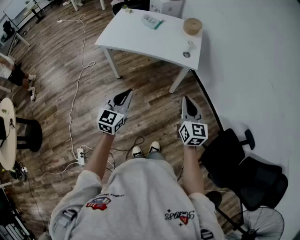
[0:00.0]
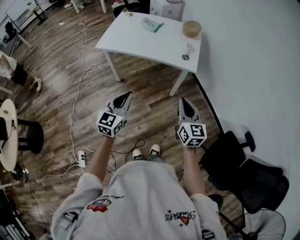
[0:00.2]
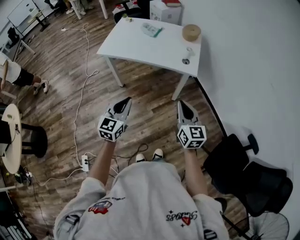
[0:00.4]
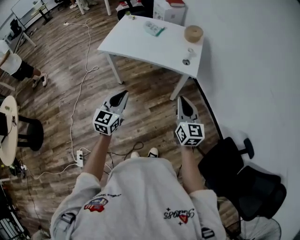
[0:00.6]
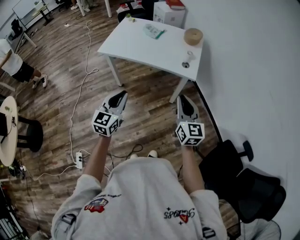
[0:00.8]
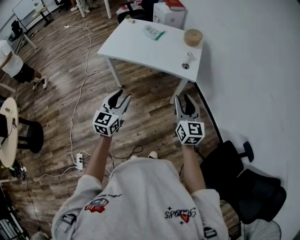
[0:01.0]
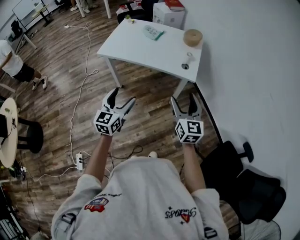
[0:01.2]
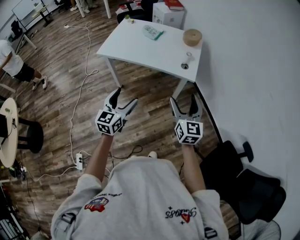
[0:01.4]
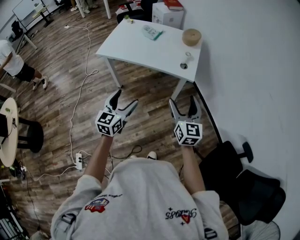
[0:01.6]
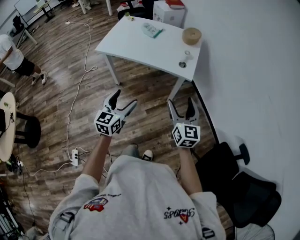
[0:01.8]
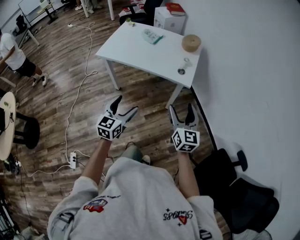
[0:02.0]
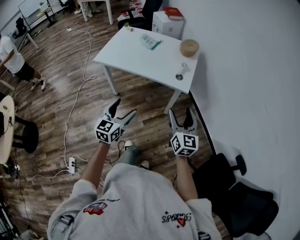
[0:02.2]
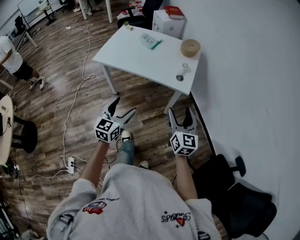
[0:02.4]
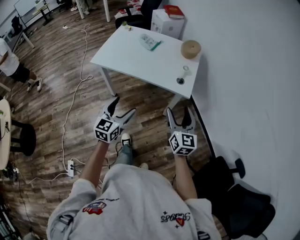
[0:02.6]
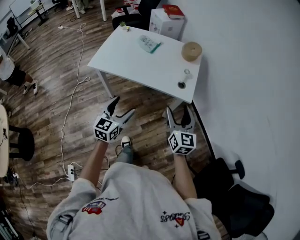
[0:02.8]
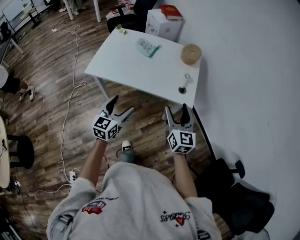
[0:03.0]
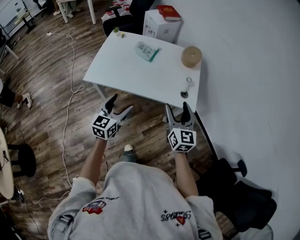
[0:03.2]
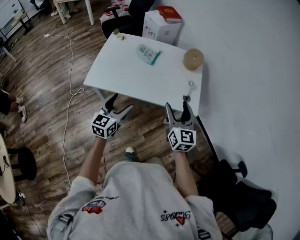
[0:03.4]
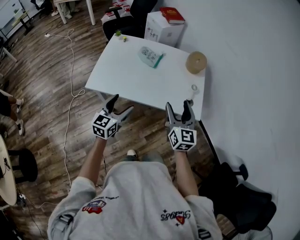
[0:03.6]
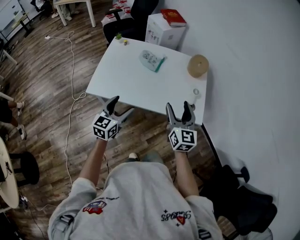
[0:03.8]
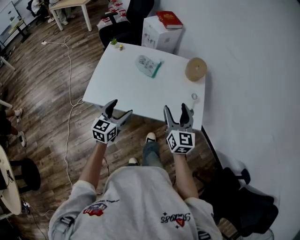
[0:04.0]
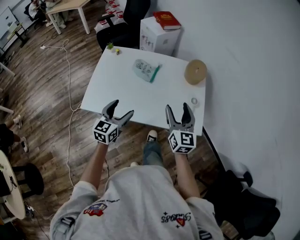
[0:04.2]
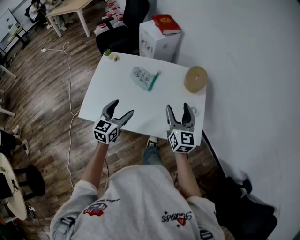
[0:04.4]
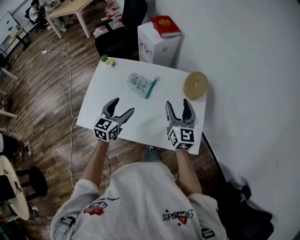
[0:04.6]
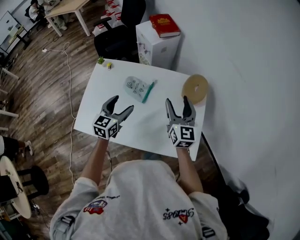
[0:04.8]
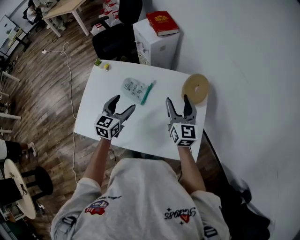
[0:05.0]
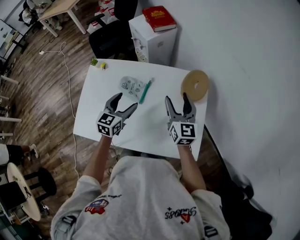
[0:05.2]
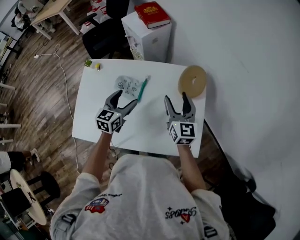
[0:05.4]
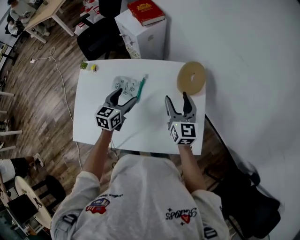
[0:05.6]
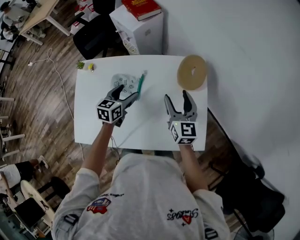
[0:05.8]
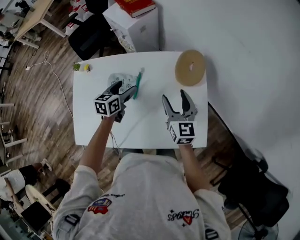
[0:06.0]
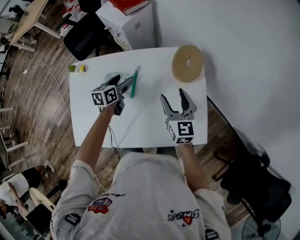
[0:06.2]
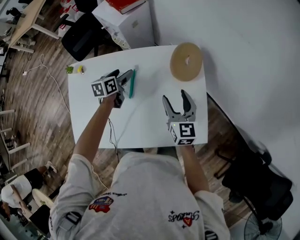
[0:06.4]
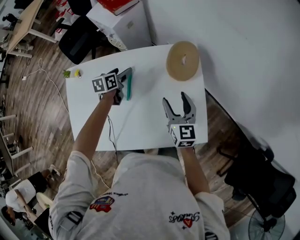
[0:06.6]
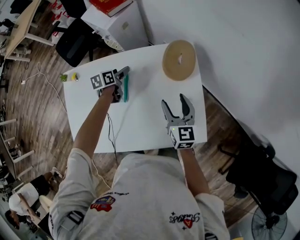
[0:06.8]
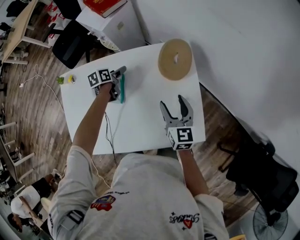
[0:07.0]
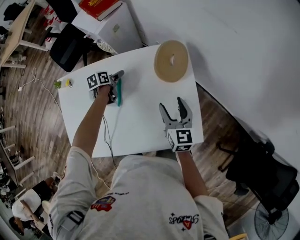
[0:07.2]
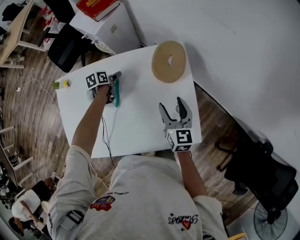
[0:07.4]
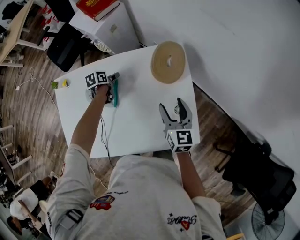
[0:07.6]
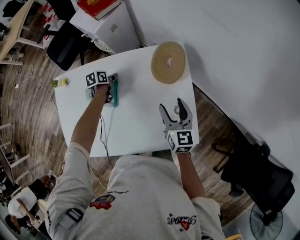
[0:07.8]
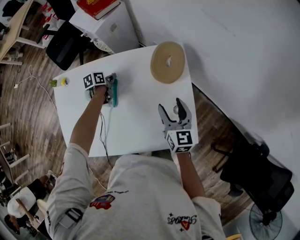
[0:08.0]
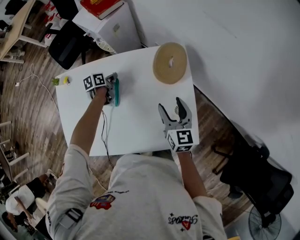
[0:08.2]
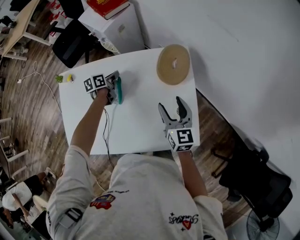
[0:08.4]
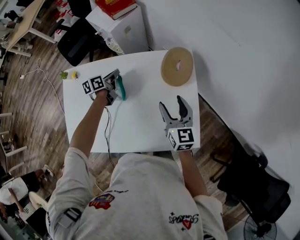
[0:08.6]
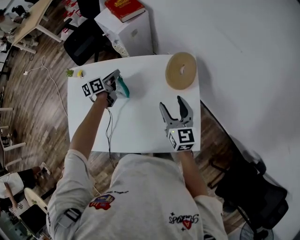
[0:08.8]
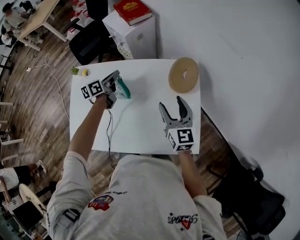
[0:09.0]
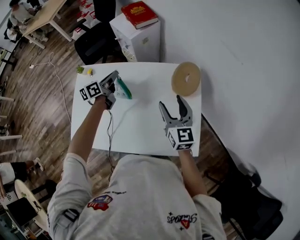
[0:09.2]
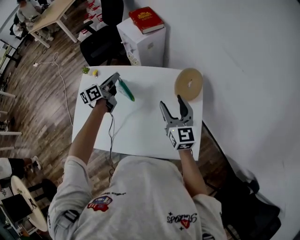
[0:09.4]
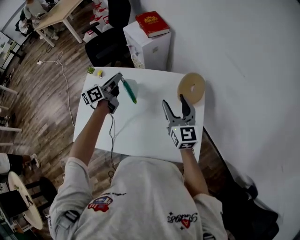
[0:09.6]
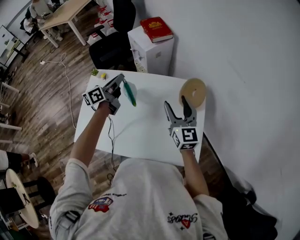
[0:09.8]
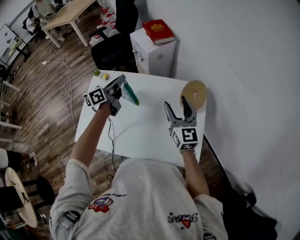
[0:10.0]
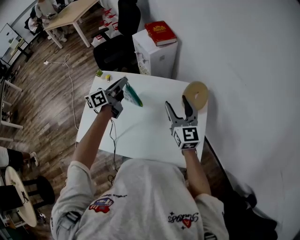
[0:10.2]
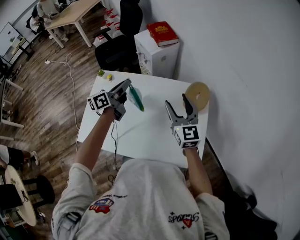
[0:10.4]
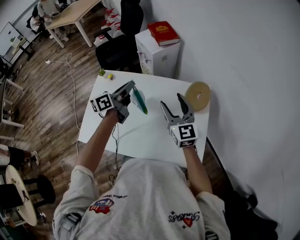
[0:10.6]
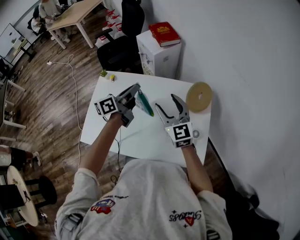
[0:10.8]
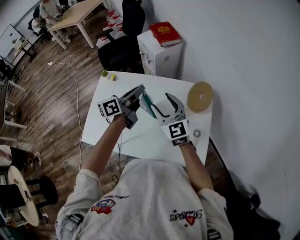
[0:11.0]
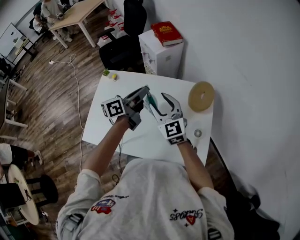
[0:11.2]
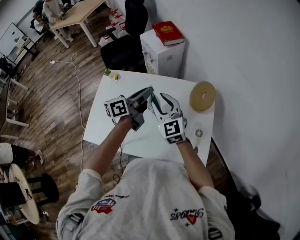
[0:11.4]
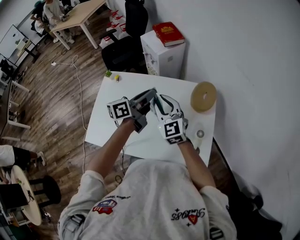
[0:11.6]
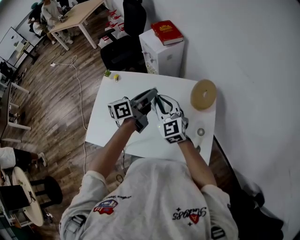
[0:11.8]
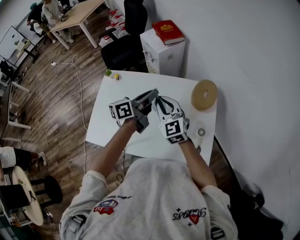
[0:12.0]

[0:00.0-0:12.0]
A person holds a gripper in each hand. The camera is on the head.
0:00.0 to 0:01.6: The left gripper opens up, while the right gripper moves roughly 5 cm, and opens its fingers.
0:01.6 to 0:03.0: Both grippers move forward and to the left, some 25 cm.
0:03.0 to 0:04.4: Both grippers travel together forward, roughly 35 cm.
0:04.4 to 0:06.0: The left gripper shifts some 30 cm forward, and rotates approximately 30 degrees. Meanwhile the right gripper shifts roughly 25 cm forward and downward.
0:06.0 to 0:07.6: The left gripper heads downward and forward, covering roughly 20 cm, turns by some 30 degrees, and closes its fingers; the right gripper goes roughly 10 cm to the right and downward.
0:07.6 to 0:09.0: The left gripper travels upward by roughly 20 cm, angles its fingers upward, by roughly 30 degrees, and closes. The right gripper shifts approximately 10 cm upward and to the left.
0:09.0 to 0:10.4: The left gripper moves upward and backward, about 20 cm, and swivels approximately 20 degrees. Meanwhile the right gripper moves upward and to the left, approximately 15 cm.
0:10.4 to 0:12.0: The left gripper is displaced to the right and backward by about 10 cm, while the right gripper is displaced to the left by roughly 10 cm, and closes its fingers.

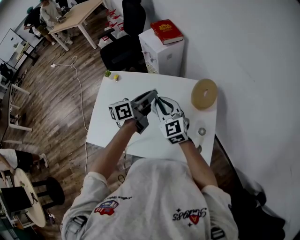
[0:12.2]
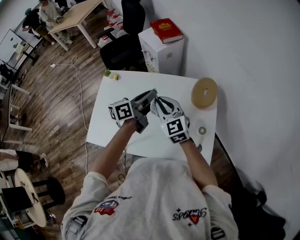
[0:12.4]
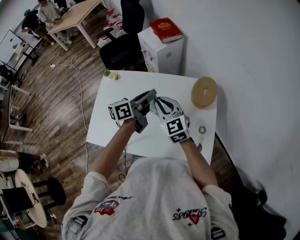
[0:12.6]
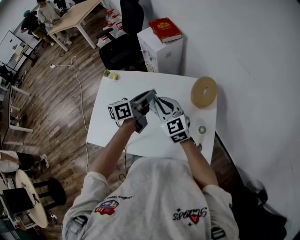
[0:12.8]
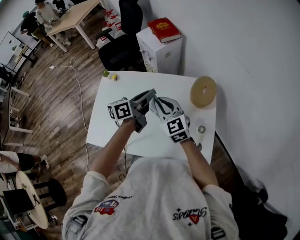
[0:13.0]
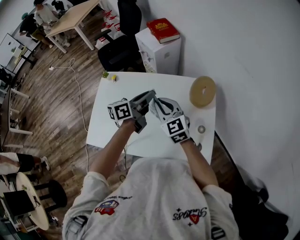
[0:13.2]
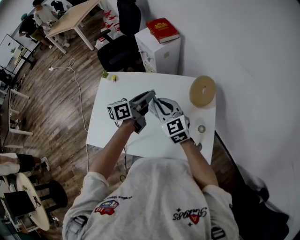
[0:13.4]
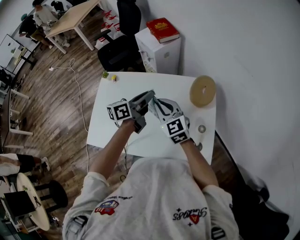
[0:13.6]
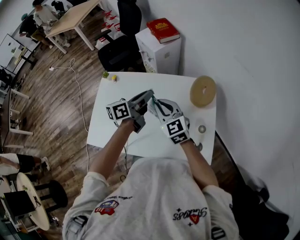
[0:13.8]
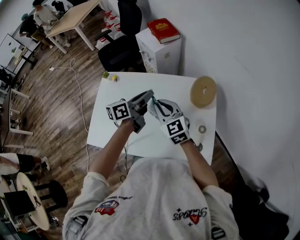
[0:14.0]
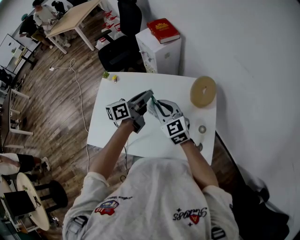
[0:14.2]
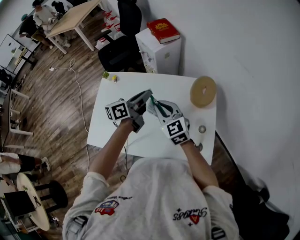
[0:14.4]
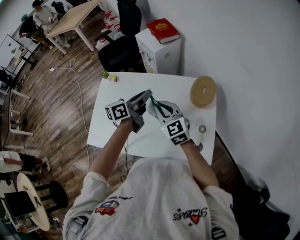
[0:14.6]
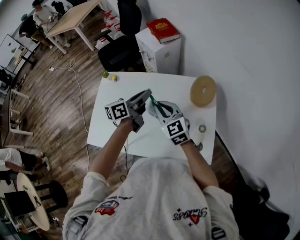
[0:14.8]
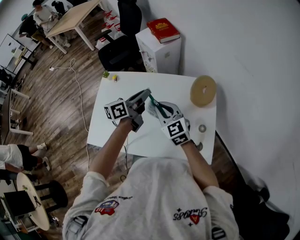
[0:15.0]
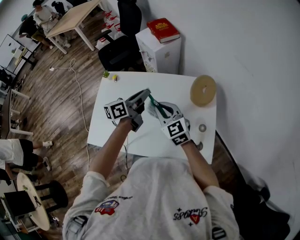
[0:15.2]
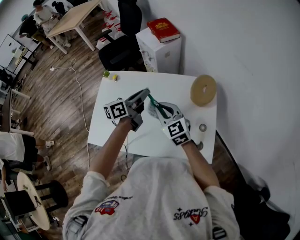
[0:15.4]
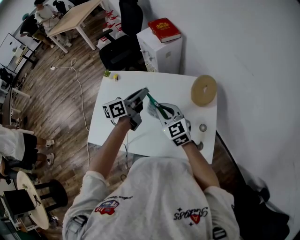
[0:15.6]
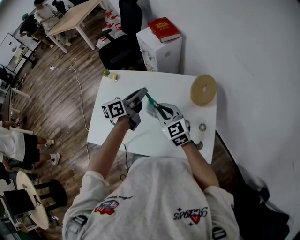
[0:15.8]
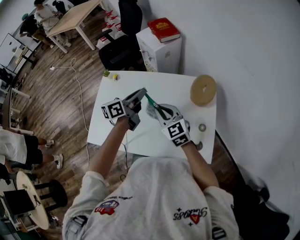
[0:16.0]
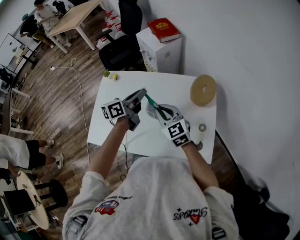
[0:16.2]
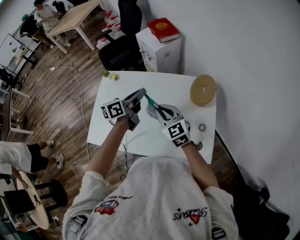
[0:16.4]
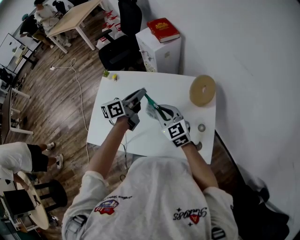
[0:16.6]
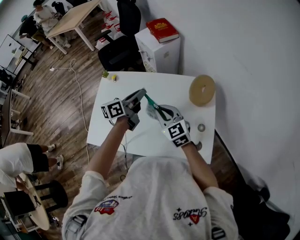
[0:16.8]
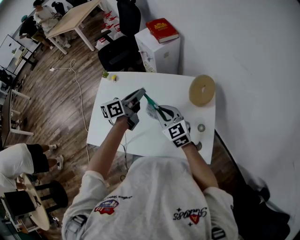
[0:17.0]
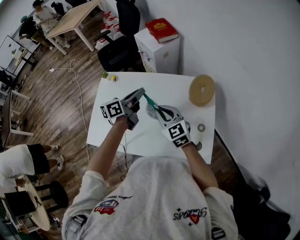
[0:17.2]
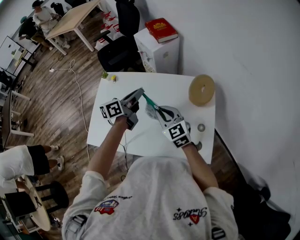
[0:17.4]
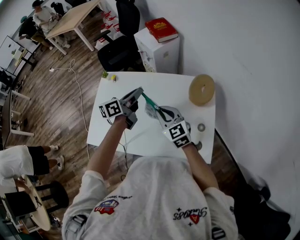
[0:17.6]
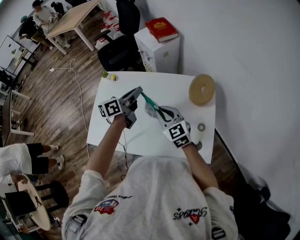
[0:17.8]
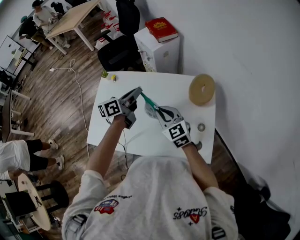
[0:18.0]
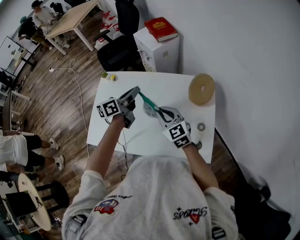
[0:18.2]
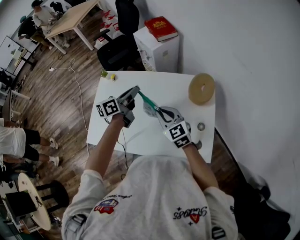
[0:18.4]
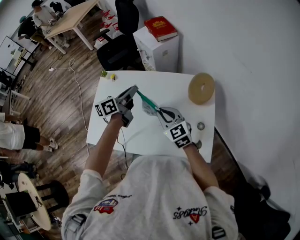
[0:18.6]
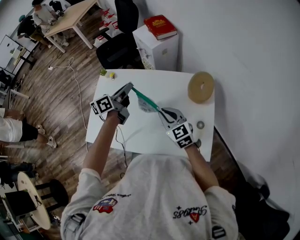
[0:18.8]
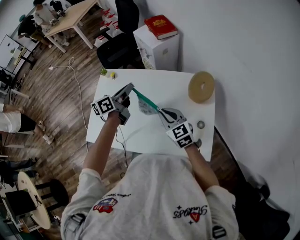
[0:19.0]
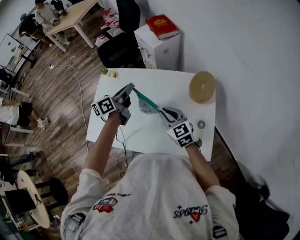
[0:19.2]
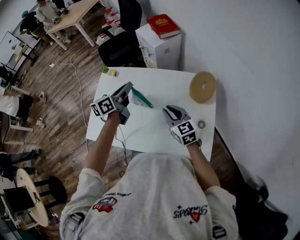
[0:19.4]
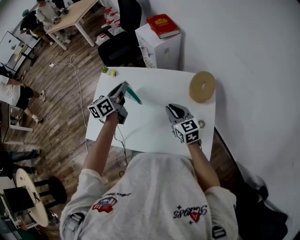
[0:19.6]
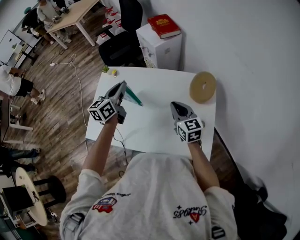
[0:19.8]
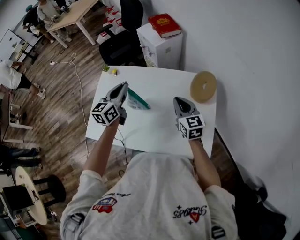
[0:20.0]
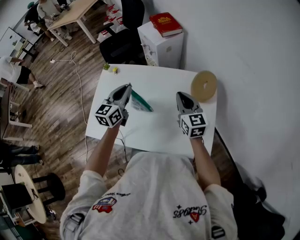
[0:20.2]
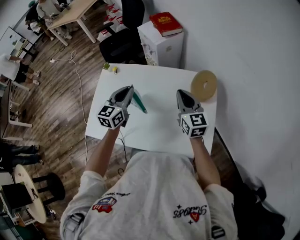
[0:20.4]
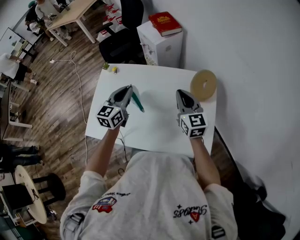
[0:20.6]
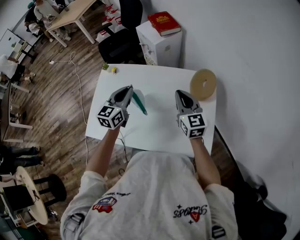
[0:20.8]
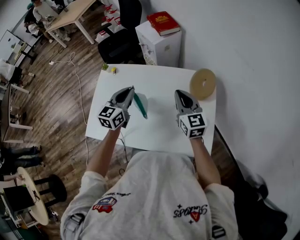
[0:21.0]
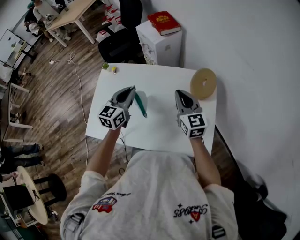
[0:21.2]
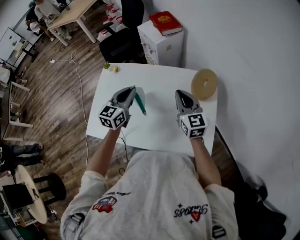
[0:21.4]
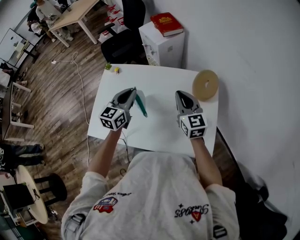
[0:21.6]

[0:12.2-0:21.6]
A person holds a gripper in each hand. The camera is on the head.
0:12.2 to 0:17.0: The grippers make only small movements.
0:17.0 to 0:18.4: There are only small adjustments of the grippers.
0:18.4 to 0:20.0: The left gripper moves to the left, about 5 cm, and swivels about 30 degrees. The right gripper heads to the right, covering approximately 5 cm.
0:20.0 to 0:21.6: The grippers make only small movements.

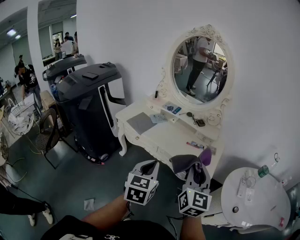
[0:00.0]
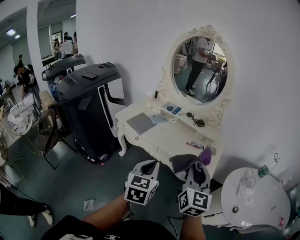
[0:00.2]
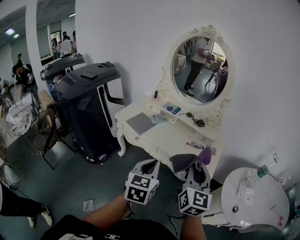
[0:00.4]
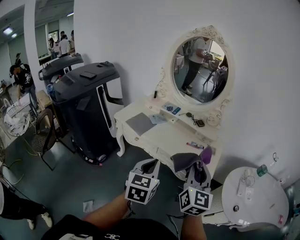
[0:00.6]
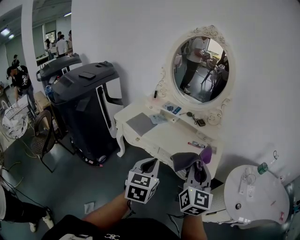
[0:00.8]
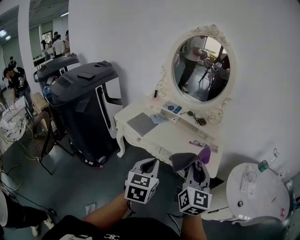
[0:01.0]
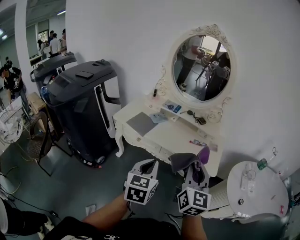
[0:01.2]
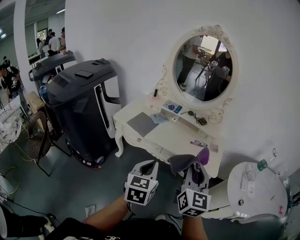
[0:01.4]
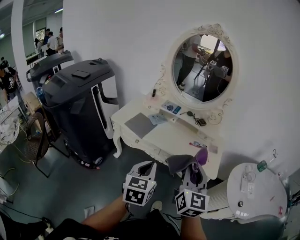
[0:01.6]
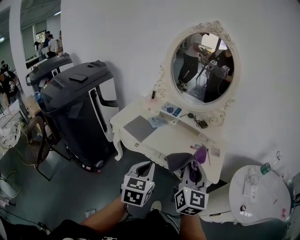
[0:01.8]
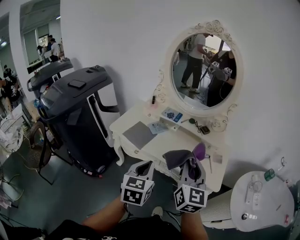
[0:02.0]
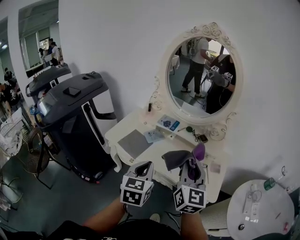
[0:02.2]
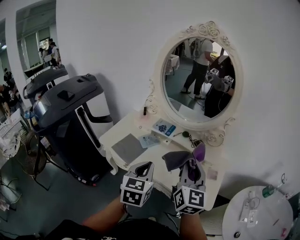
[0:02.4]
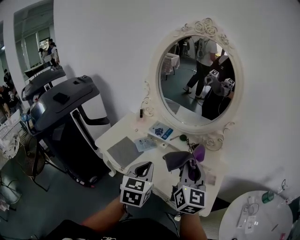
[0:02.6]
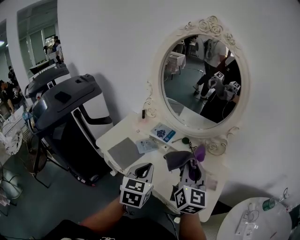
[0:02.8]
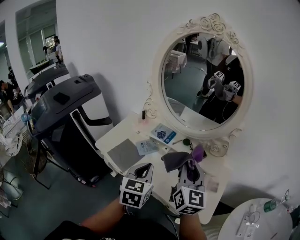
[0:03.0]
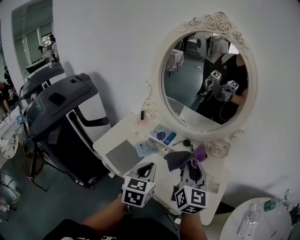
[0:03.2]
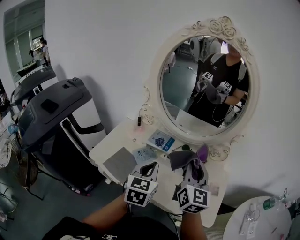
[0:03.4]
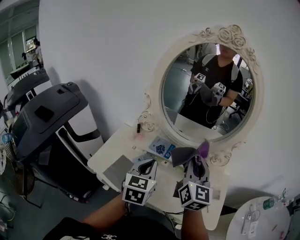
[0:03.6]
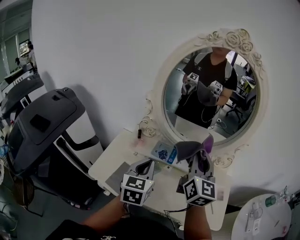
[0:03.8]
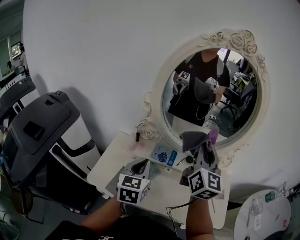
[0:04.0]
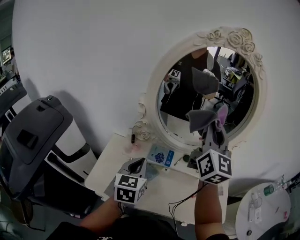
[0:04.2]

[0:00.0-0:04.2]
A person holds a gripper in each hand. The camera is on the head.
0:00.0 to 0:01.4: The two grippers go approximately 10 cm to the left.
0:01.4 to 0:02.8: The grippers both shift forward by some 30 cm.
0:02.8 to 0:04.2: The left gripper shifts about 25 cm forward and to the left. Meanwhile the right gripper moves forward, upward and to the left, some 30 cm, and changes its angle by some 20 degrees.
